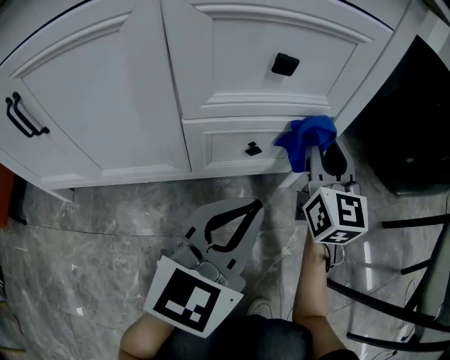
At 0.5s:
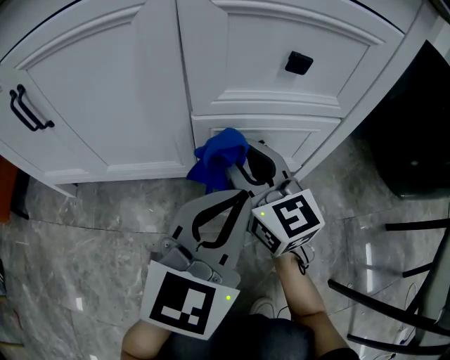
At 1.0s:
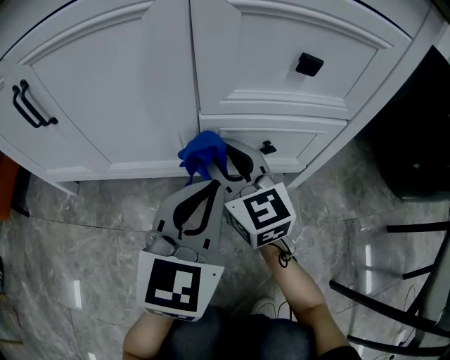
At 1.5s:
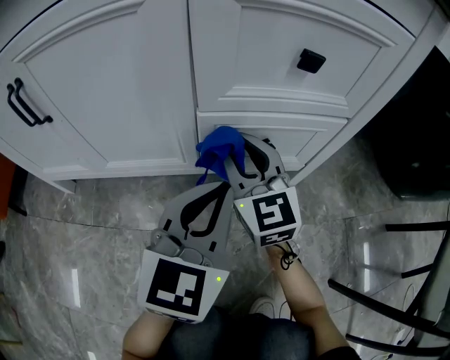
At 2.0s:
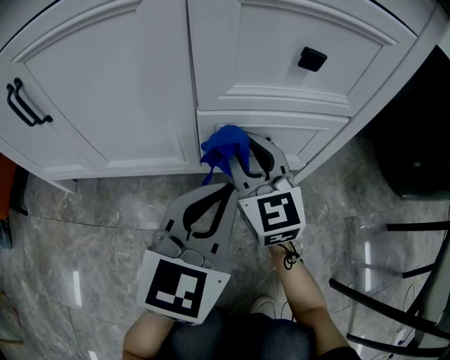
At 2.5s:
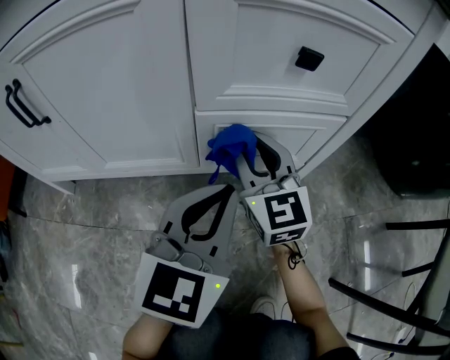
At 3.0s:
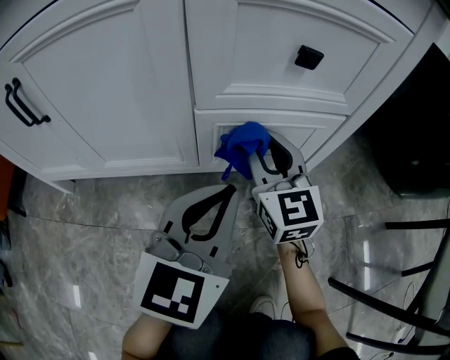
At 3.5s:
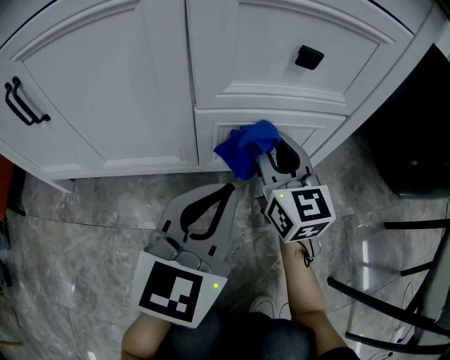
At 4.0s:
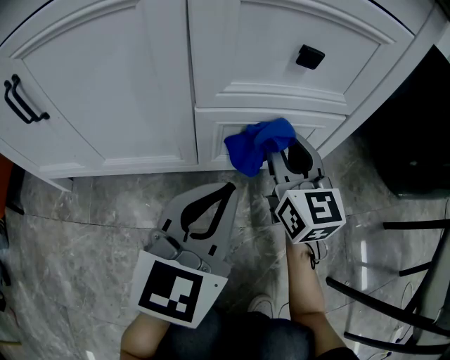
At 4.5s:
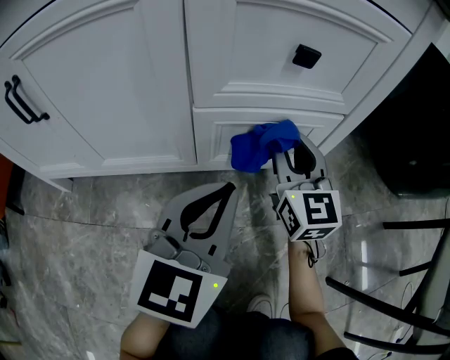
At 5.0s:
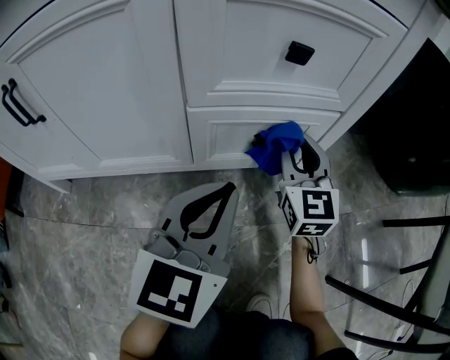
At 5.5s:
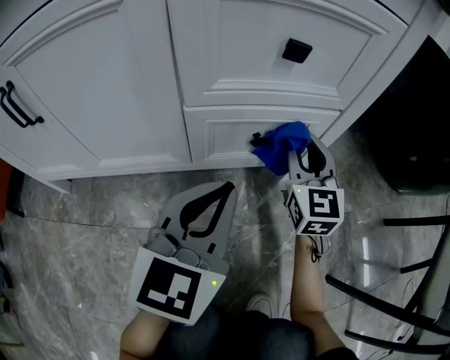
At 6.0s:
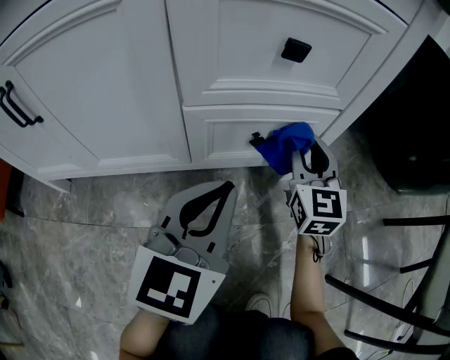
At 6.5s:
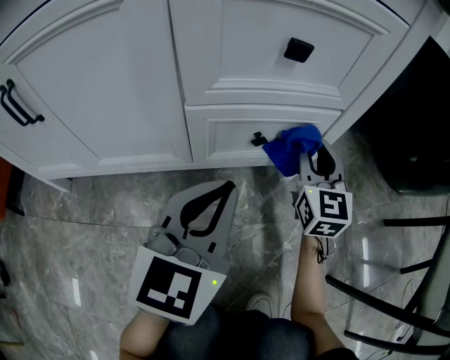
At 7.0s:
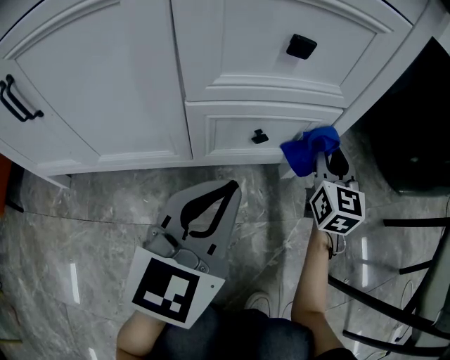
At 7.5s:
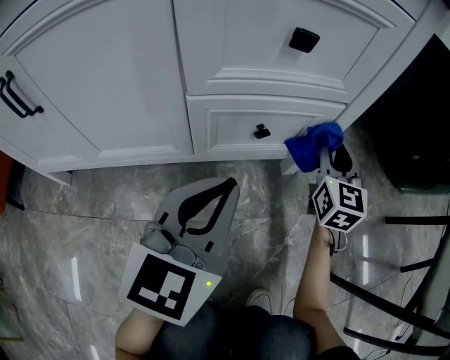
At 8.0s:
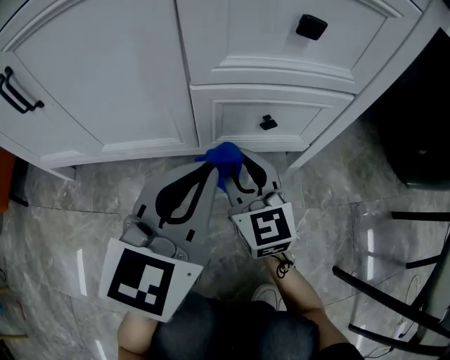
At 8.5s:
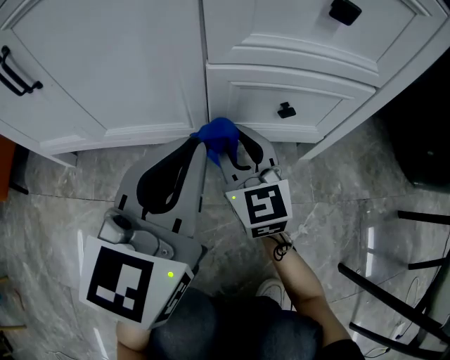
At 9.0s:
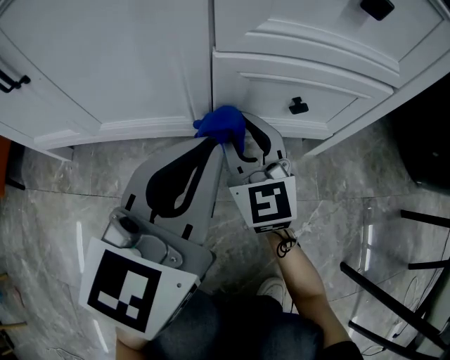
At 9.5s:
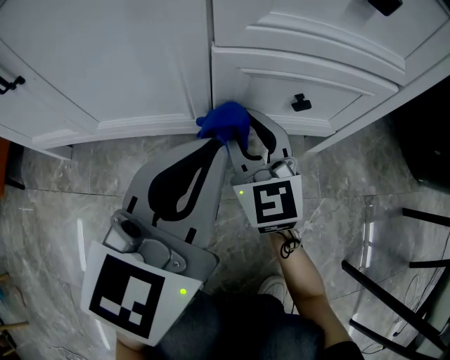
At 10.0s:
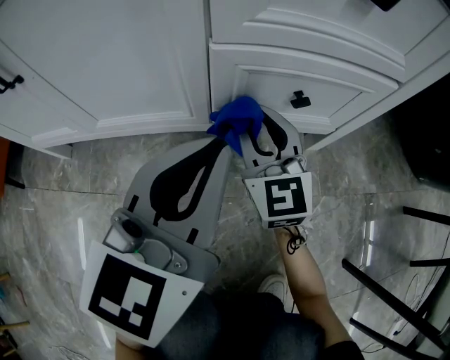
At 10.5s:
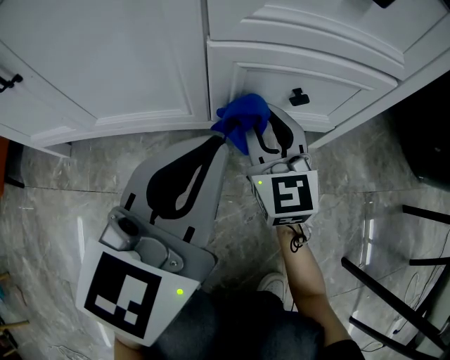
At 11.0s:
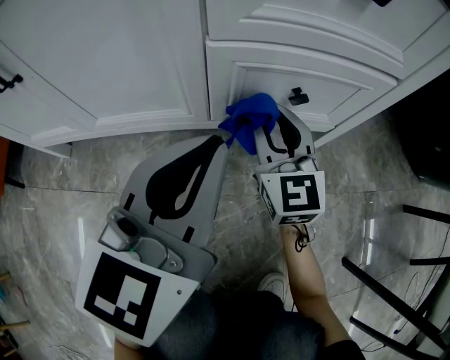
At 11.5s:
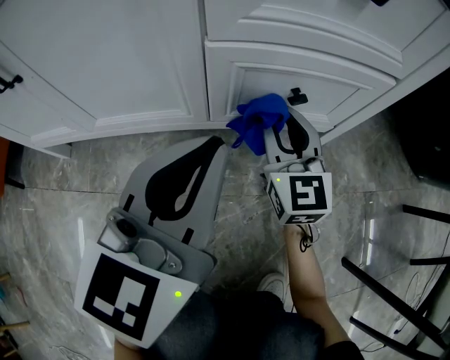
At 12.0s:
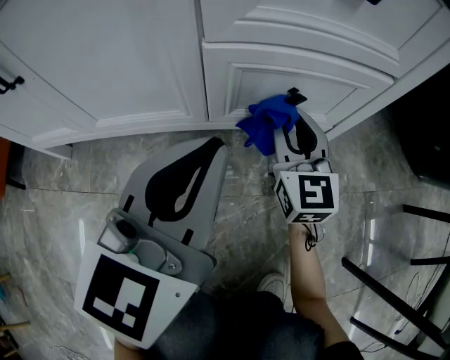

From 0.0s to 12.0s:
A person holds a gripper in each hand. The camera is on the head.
From 0.0s to 2.0s: The right gripper ends up approximately 20 cm from where it was, and changes its angle by some 30 degrees, while the left gripper moves about 5 cm.
From 2.0s to 4.0s: The right gripper travels to the right by about 10 cm.
From 4.0s to 6.0s: The right gripper moves to the right, roughly 5 cm.
From 6.0s to 8.0s: The right gripper moves to the left and backward, roughly 20 cm, and swivels roughly 20 degrees.
From 8.0s to 10.0s: The right gripper moves some 5 cm.
From 10.0s to 12.0s: The right gripper moves to the right, some 10 cm.

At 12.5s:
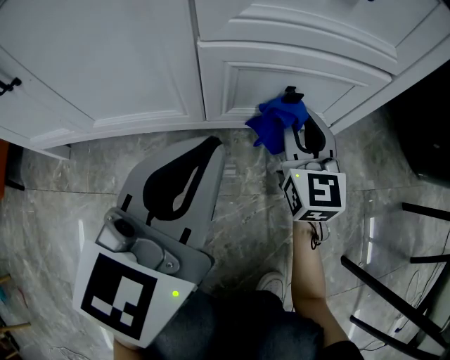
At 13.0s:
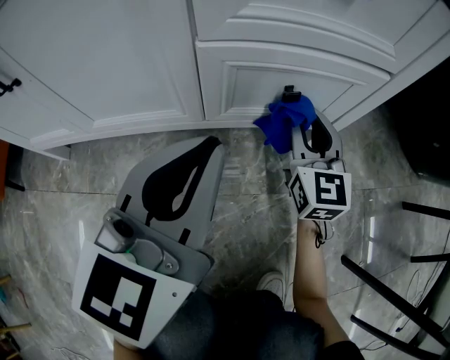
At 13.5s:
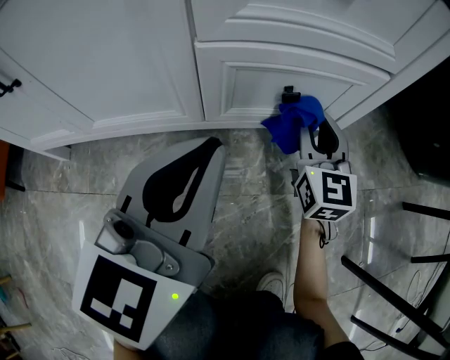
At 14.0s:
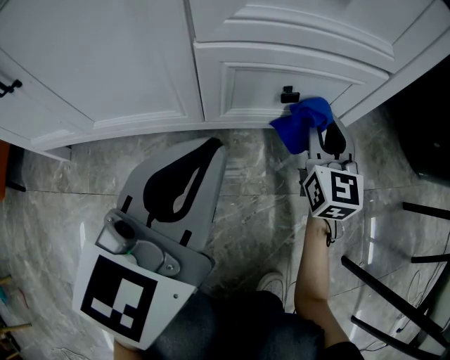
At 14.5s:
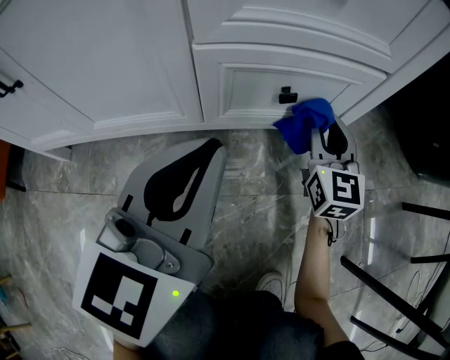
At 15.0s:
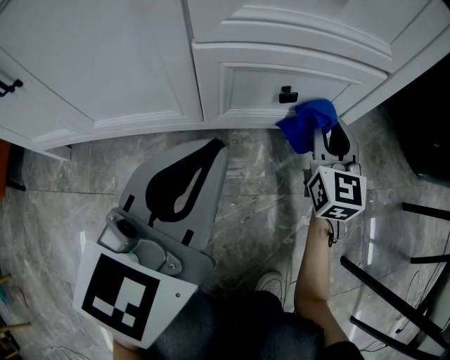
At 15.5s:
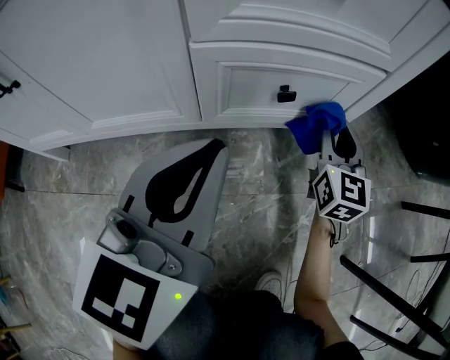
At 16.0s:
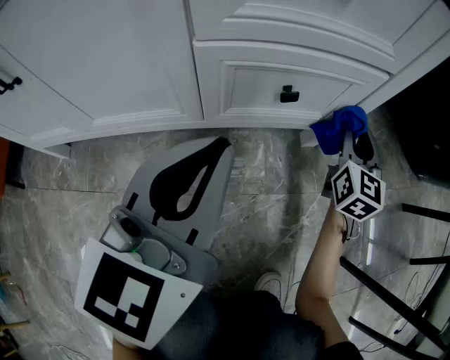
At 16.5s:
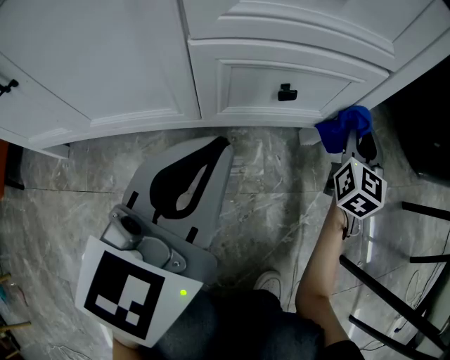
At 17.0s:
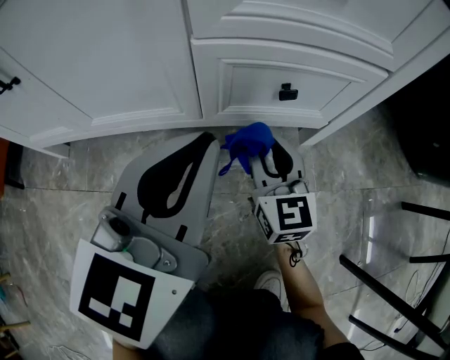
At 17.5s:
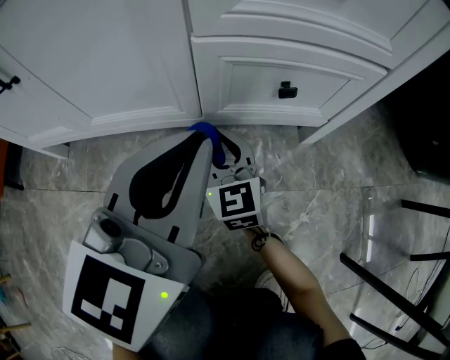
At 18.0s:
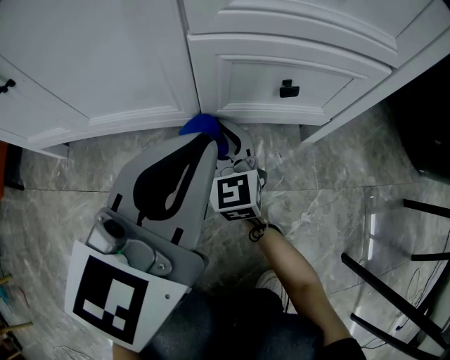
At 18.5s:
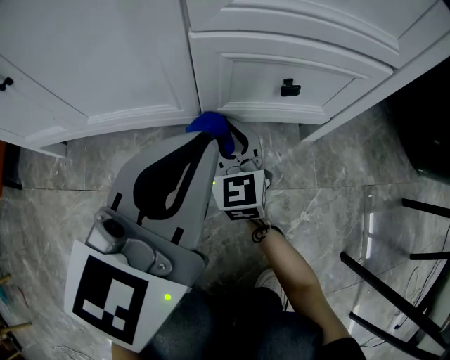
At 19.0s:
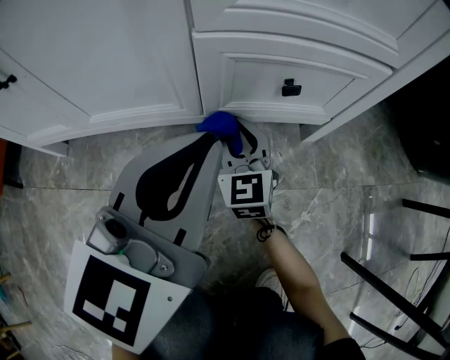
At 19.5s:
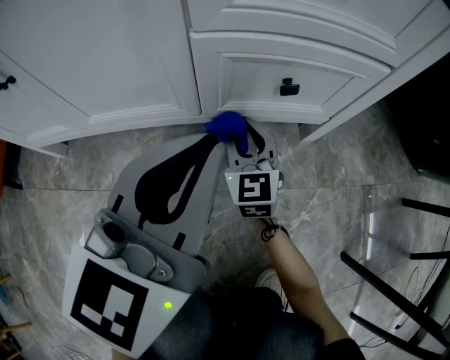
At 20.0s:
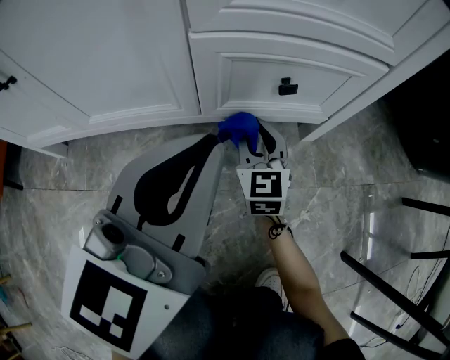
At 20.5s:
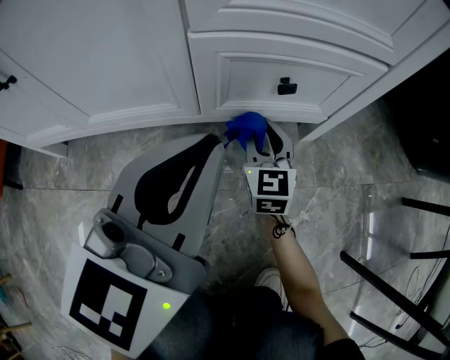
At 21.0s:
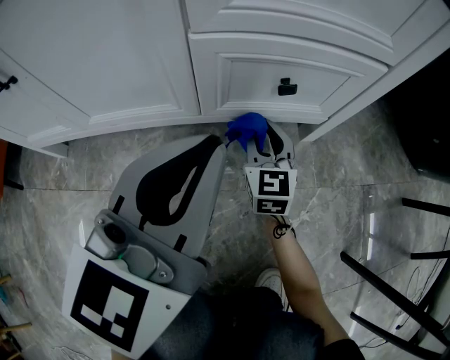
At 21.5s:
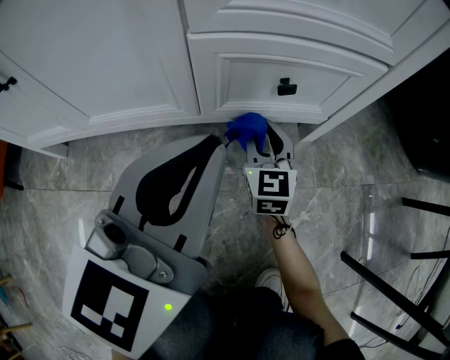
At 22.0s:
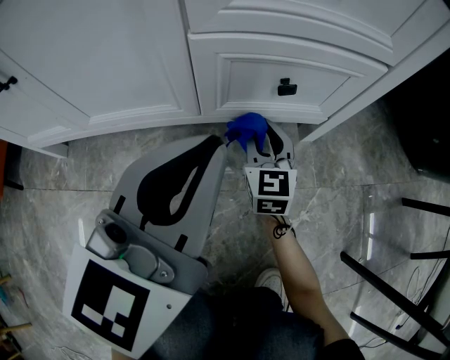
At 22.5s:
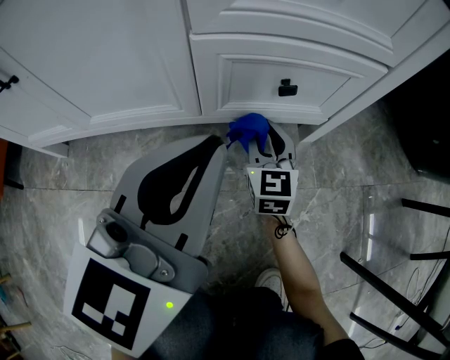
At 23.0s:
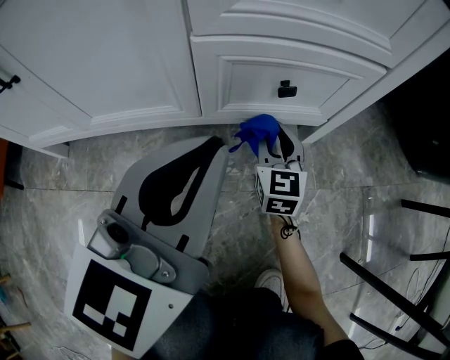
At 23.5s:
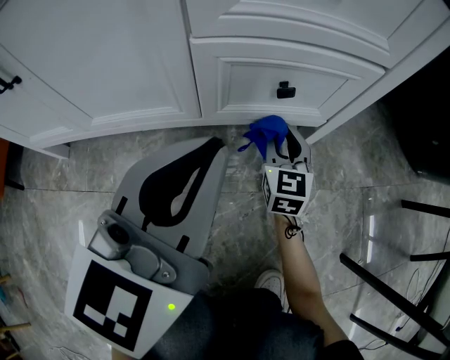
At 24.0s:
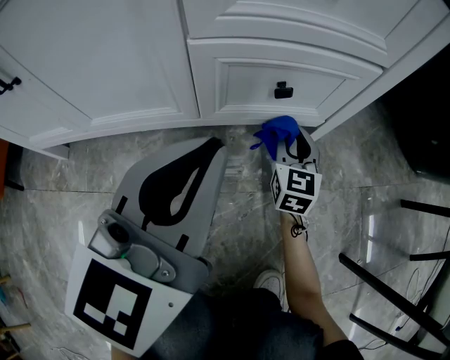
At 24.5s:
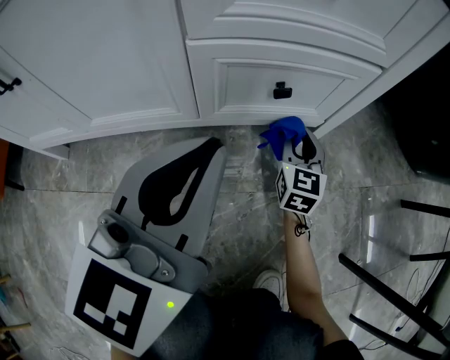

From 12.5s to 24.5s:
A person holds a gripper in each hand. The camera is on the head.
From 12.5s to 14.5s: The right gripper travels to the right by approximately 5 cm.
From 14.5s to 16.5s: The right gripper goes some 10 cm to the right.
From 16.5s to 18.5s: The right gripper goes about 30 cm to the left, and rotates approximately 40 degrees.
From 18.5s to 20.5s: The right gripper moves to the right, some 10 cm.
From 20.5s to 22.5s: Both grippers stay about where they are.
From 22.5s to 24.5s: The right gripper moves to the right, some 10 cm.

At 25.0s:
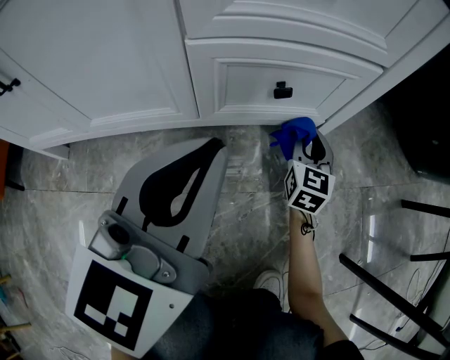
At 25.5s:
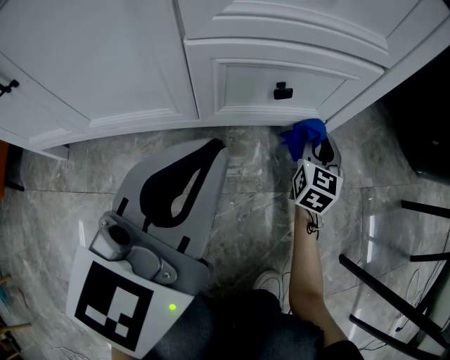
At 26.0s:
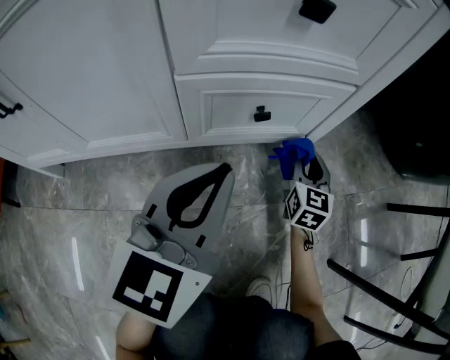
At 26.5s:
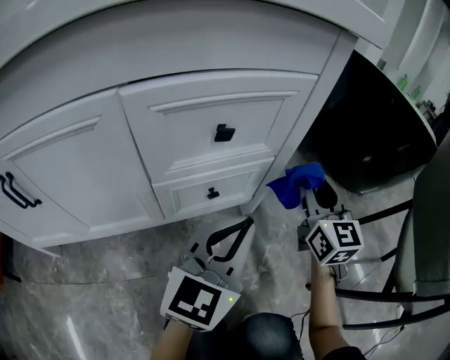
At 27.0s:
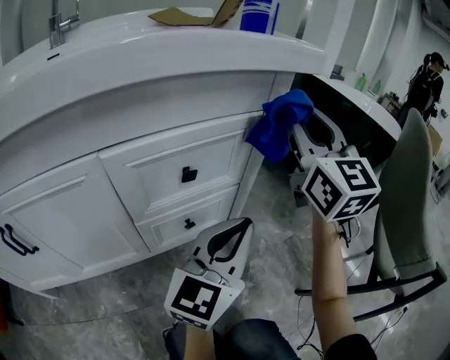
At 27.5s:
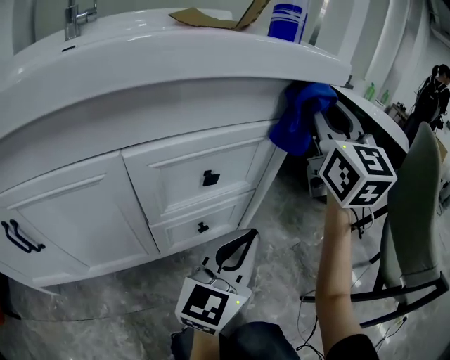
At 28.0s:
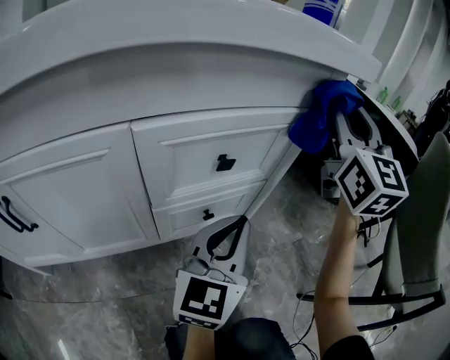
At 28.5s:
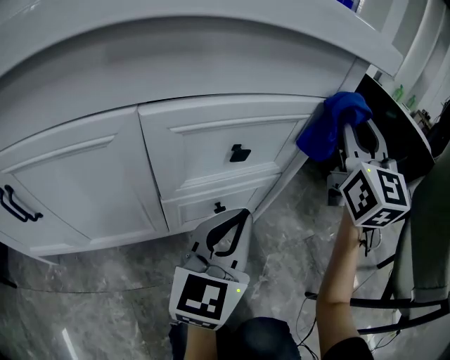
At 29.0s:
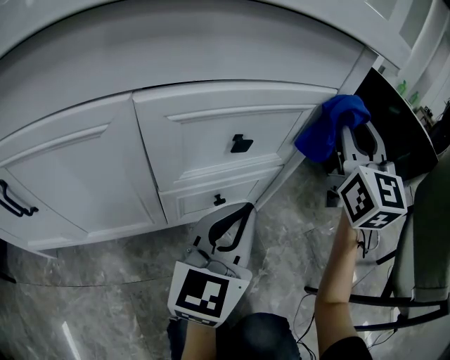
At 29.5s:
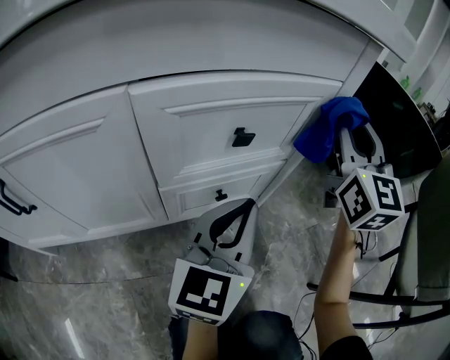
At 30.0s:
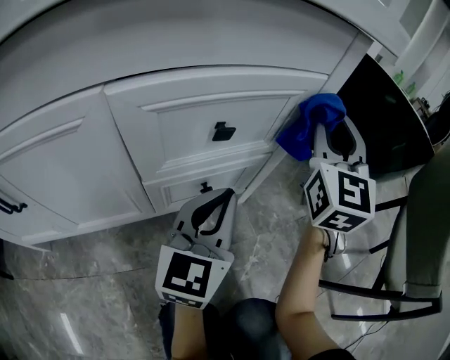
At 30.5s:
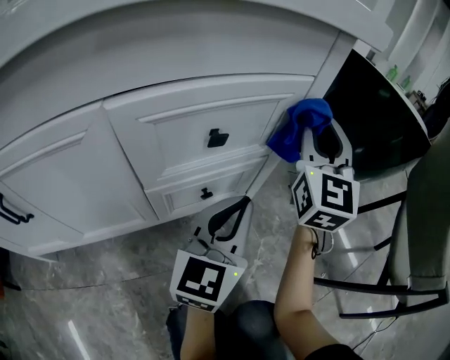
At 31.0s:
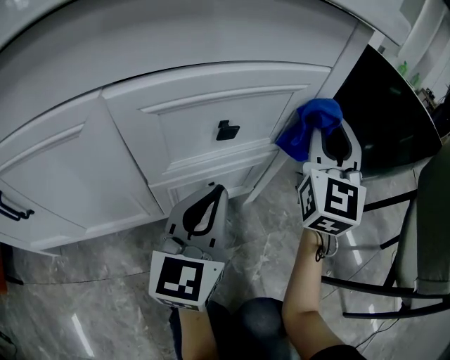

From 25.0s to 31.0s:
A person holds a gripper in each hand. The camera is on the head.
From 25.0s to 27.0s: The left gripper moves to the right and upward, approximately 20 cm, and rotates roughly 30 degrees. The right gripper is displaced upward by approximately 50 cm, and swivels some 30 degrees.
From 27.0s to 29.0s: The left gripper travels to the left by about 5 cm. Meanwhile the right gripper is displaced downward by some 5 cm.
From 29.0s to 31.0s: The right gripper is displaced downward by approximately 5 cm.
